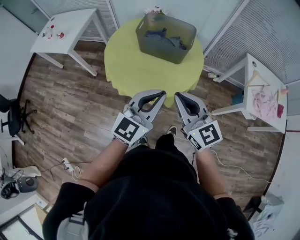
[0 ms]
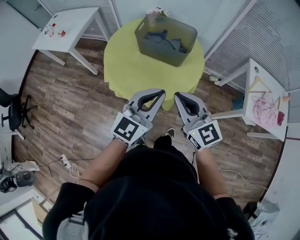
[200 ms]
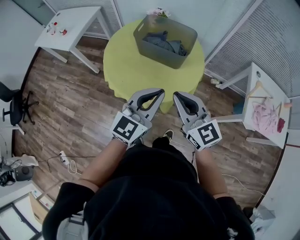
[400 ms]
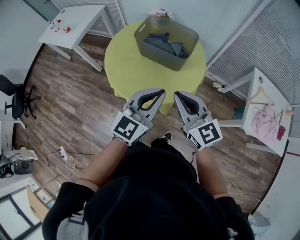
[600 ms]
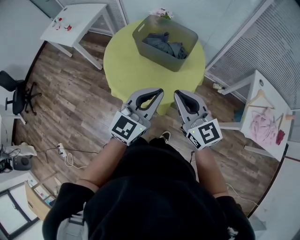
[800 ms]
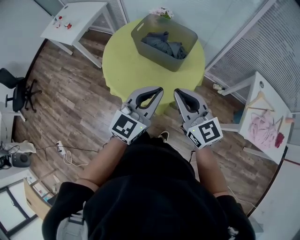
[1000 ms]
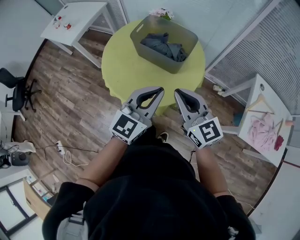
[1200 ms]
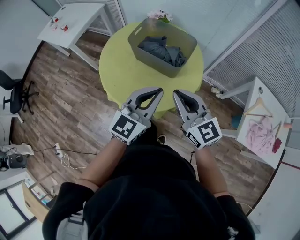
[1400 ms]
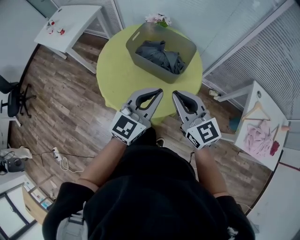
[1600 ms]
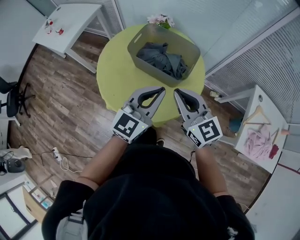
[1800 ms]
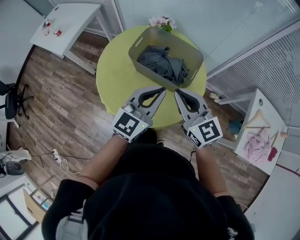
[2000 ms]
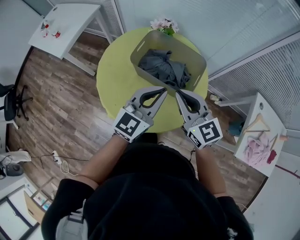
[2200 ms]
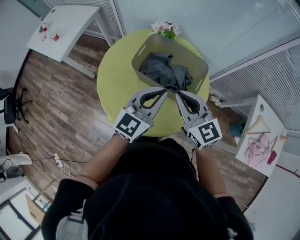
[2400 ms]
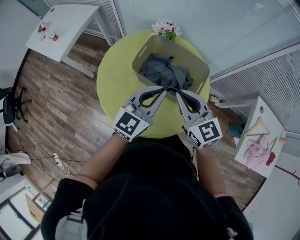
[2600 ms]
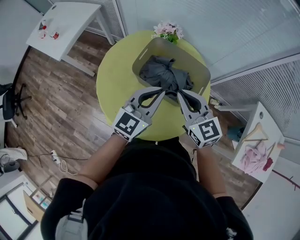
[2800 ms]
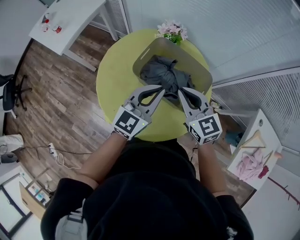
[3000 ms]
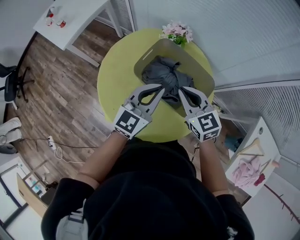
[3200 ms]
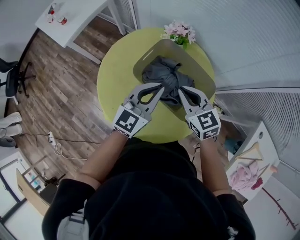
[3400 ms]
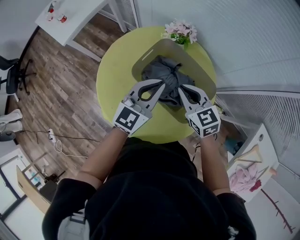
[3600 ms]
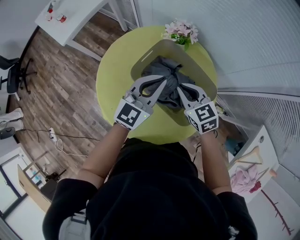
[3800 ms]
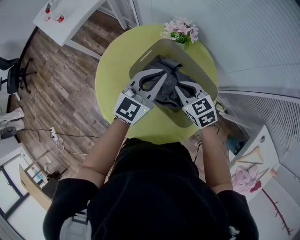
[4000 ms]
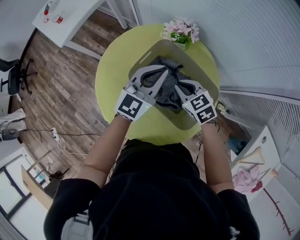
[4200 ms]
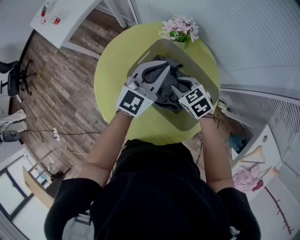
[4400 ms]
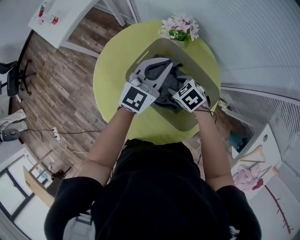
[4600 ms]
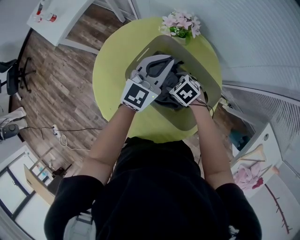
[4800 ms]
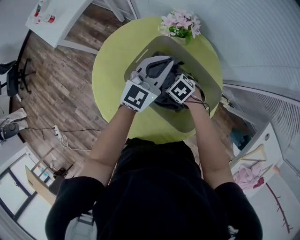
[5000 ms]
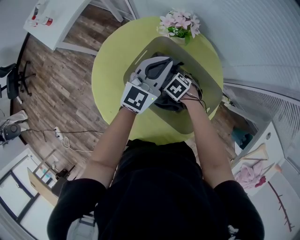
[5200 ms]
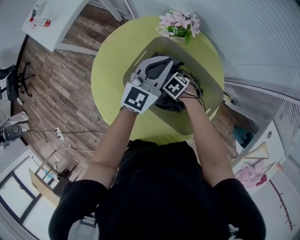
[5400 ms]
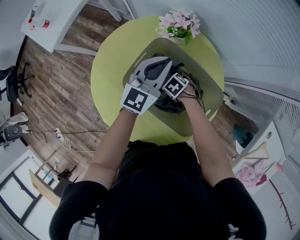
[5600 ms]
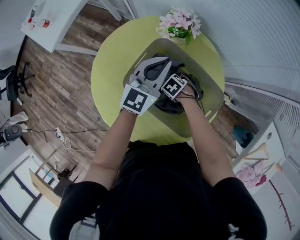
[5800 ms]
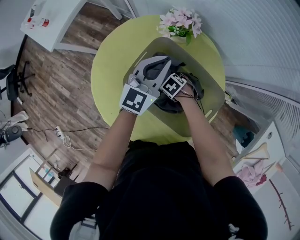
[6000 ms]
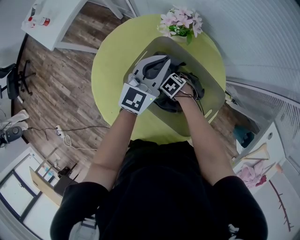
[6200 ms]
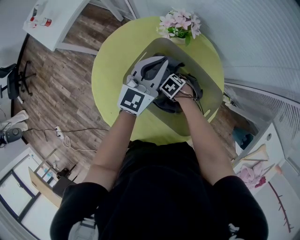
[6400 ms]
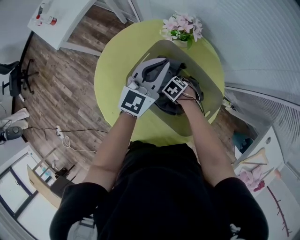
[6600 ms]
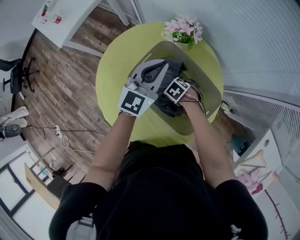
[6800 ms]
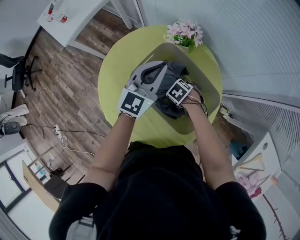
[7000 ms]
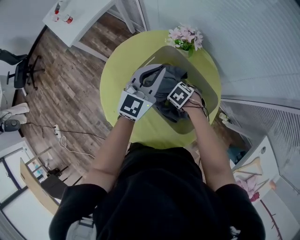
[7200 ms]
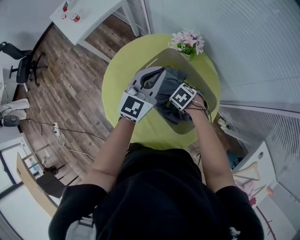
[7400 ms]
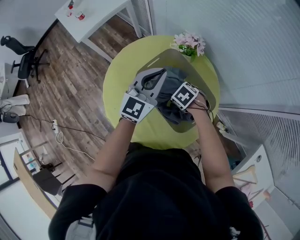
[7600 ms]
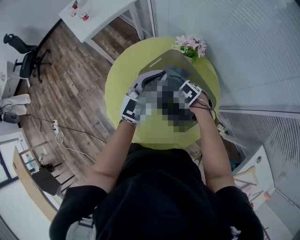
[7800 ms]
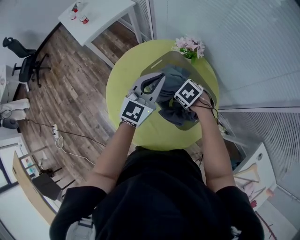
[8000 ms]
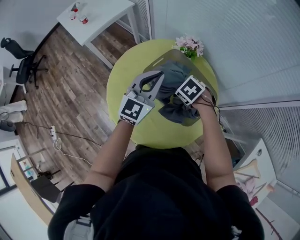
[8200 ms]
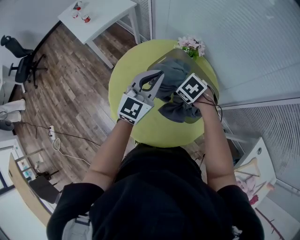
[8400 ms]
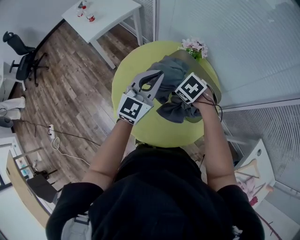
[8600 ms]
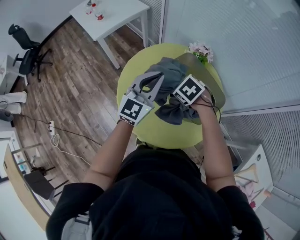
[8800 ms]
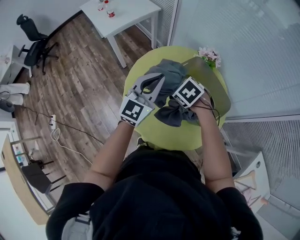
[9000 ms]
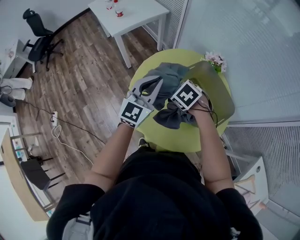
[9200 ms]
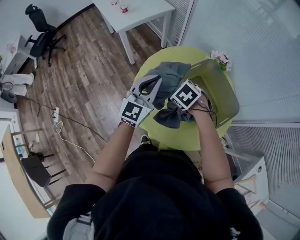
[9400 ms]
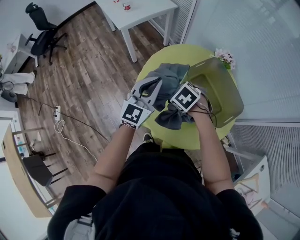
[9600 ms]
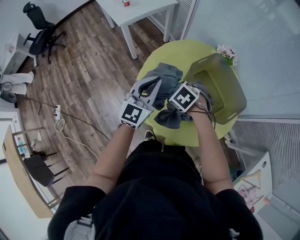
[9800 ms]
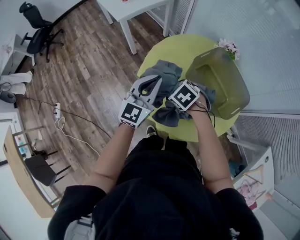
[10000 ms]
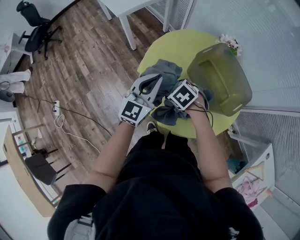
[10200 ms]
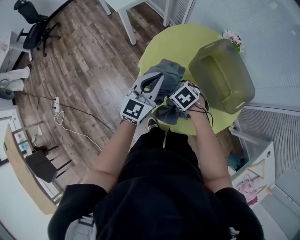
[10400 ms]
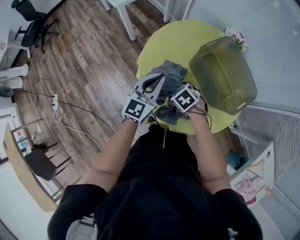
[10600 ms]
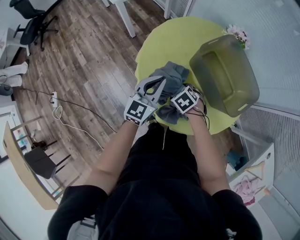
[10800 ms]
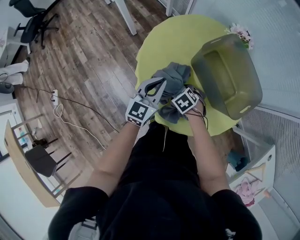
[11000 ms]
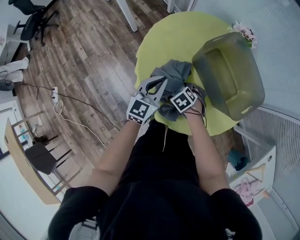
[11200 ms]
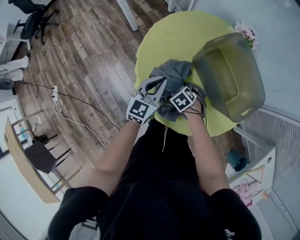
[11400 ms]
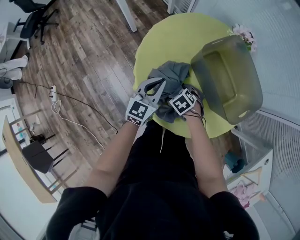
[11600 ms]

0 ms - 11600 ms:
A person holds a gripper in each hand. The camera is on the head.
0 ms - 1400 ms: Both grippers move forward and to the right, about 15 cm.
1400 ms - 2800 ms: The two grippers go approximately 25 cm forward.
2800 ms - 4400 ms: The left gripper travels forward by roughly 20 cm; the right gripper is displaced downward and forward by about 25 cm, and points its fingers about 30 degrees further downward.
4400 ms - 5800 ms: The left gripper is displaced downward by roughly 5 cm. Meanwhile the right gripper goes some 20 cm downward, changes its angle by roughly 30 degrees, and opens up.
5800 ms - 7200 ms: Both grippers travel together upward, approximately 10 cm.
7200 ms - 8800 ms: The left gripper changes place by some 20 cm. Meanwhile the right gripper shifts about 20 cm upward.
8800 ms - 10200 ms: The grippers both shift to the left and downward by roughly 20 cm.
10200 ms - 11600 ms: Both grippers move downward, approximately 15 cm.

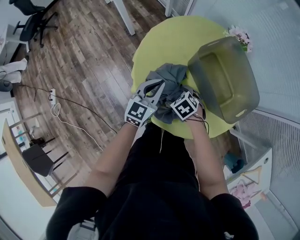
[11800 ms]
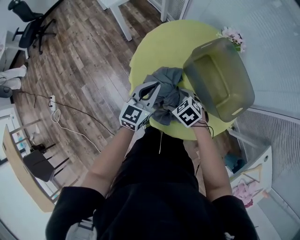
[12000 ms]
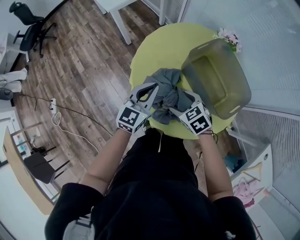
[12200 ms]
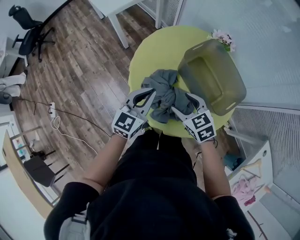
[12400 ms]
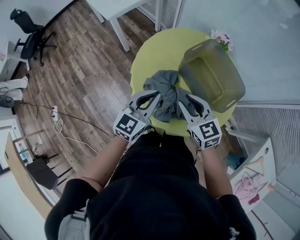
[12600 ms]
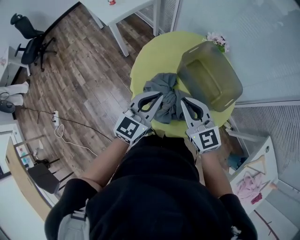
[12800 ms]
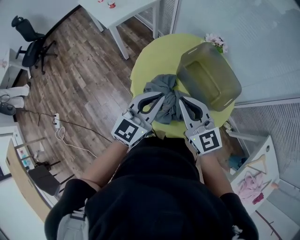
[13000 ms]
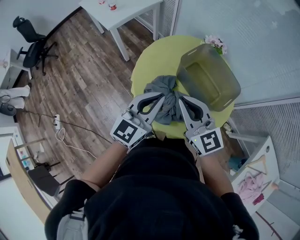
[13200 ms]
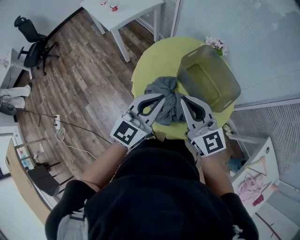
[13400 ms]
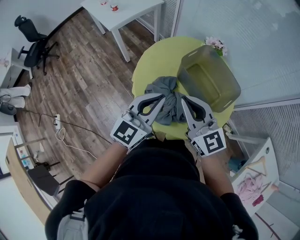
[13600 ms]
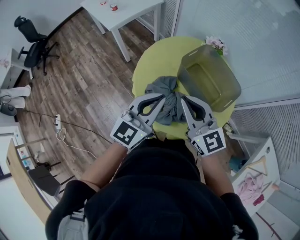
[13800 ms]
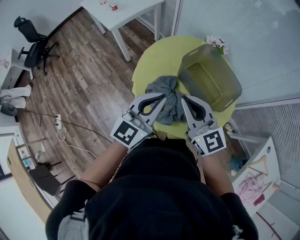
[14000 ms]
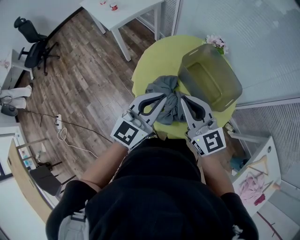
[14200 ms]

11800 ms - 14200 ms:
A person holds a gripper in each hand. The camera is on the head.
11800 ms - 13000 ms: The right gripper moves upward, approximately 35 cm, points its fingers roughly 60 degrees further upward, and closes, while the left gripper heads upward and backward, covering some 25 cm.
13000 ms - 14200 ms: The grippers stay close to where they were, moving slightly.

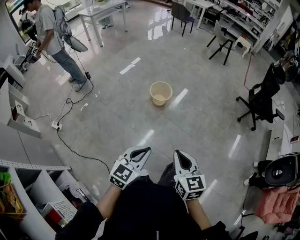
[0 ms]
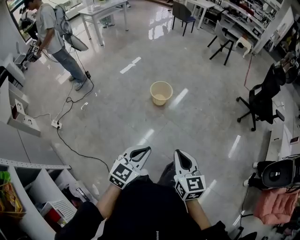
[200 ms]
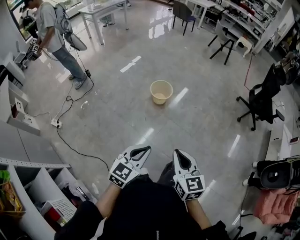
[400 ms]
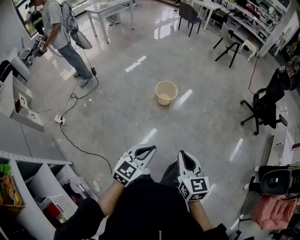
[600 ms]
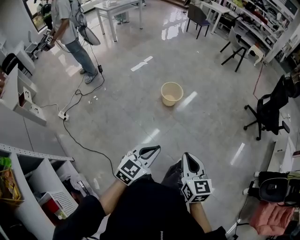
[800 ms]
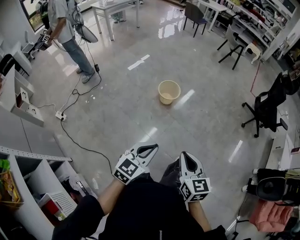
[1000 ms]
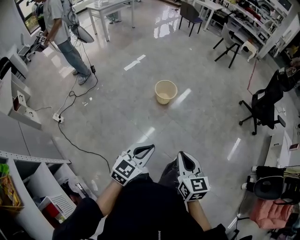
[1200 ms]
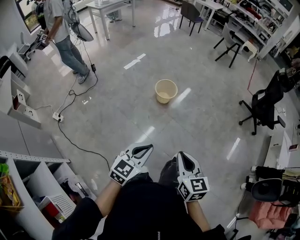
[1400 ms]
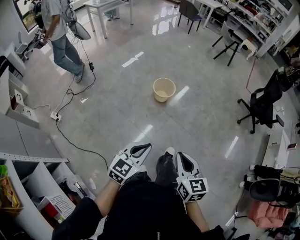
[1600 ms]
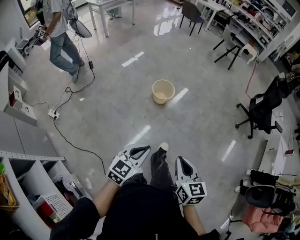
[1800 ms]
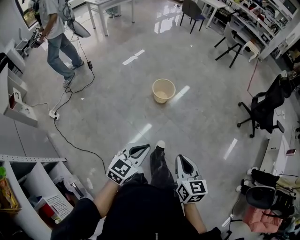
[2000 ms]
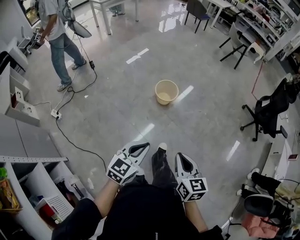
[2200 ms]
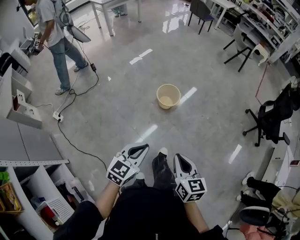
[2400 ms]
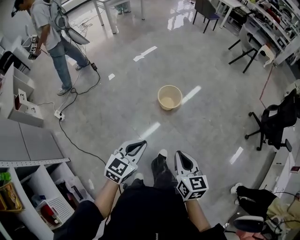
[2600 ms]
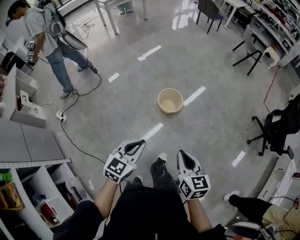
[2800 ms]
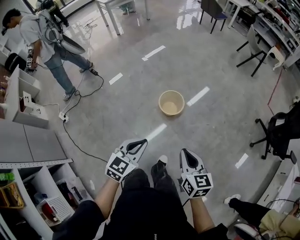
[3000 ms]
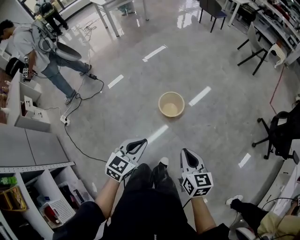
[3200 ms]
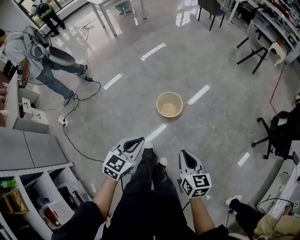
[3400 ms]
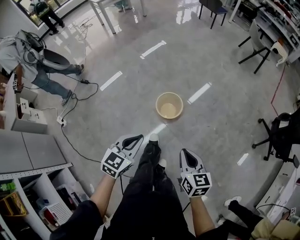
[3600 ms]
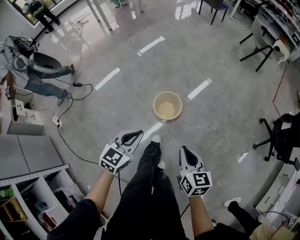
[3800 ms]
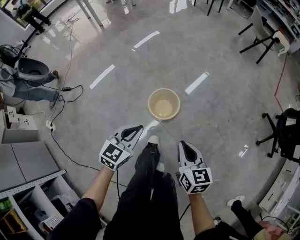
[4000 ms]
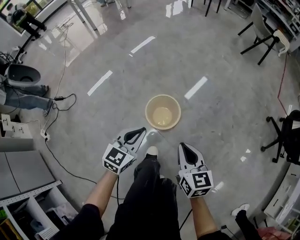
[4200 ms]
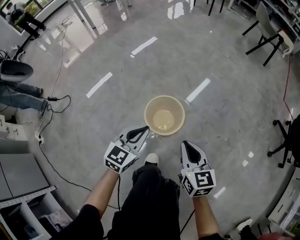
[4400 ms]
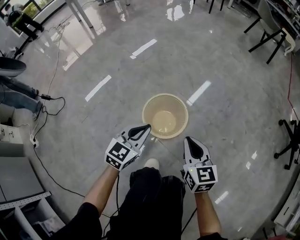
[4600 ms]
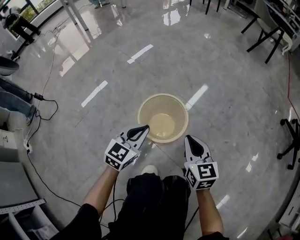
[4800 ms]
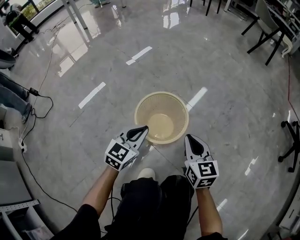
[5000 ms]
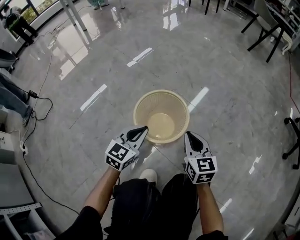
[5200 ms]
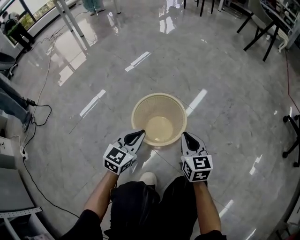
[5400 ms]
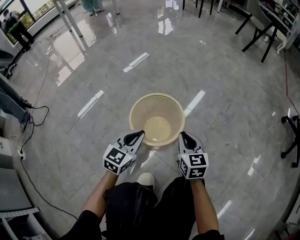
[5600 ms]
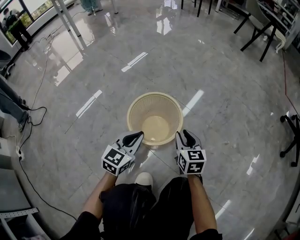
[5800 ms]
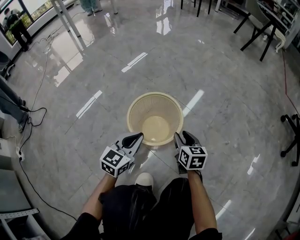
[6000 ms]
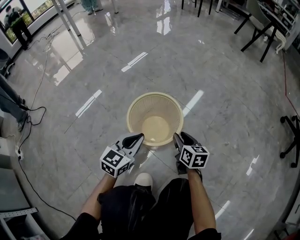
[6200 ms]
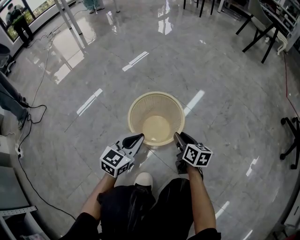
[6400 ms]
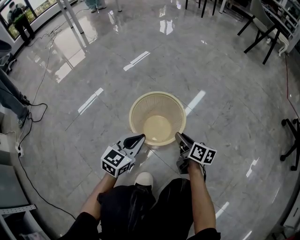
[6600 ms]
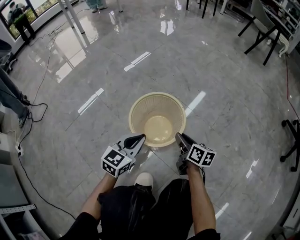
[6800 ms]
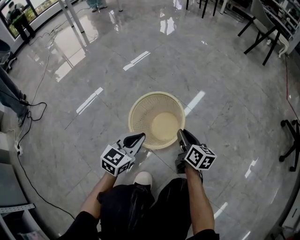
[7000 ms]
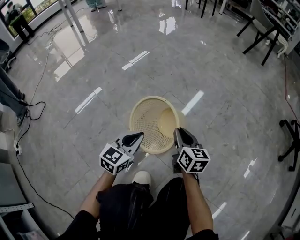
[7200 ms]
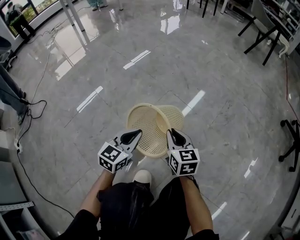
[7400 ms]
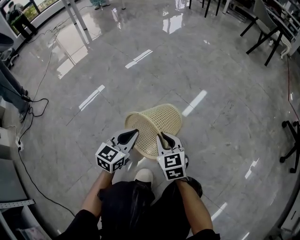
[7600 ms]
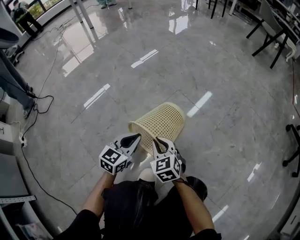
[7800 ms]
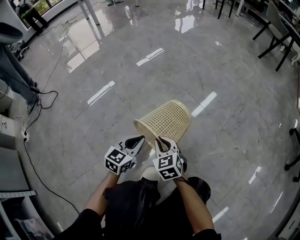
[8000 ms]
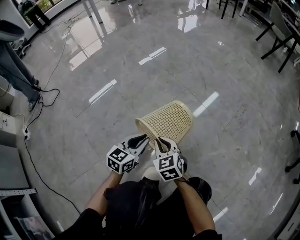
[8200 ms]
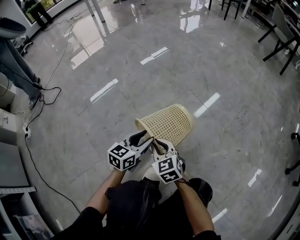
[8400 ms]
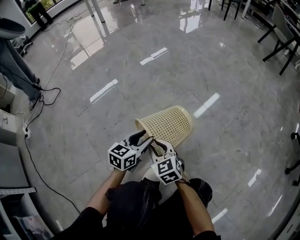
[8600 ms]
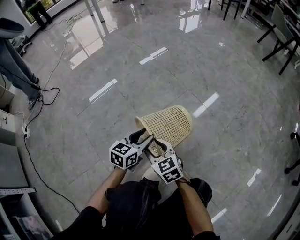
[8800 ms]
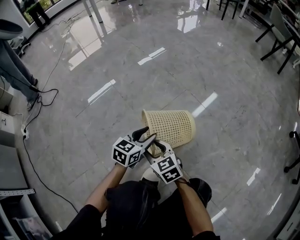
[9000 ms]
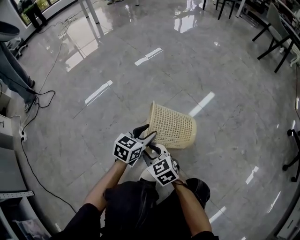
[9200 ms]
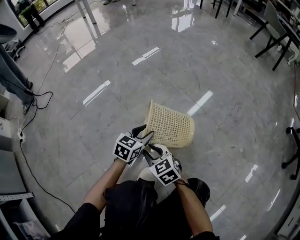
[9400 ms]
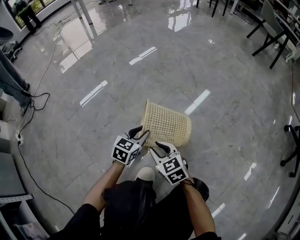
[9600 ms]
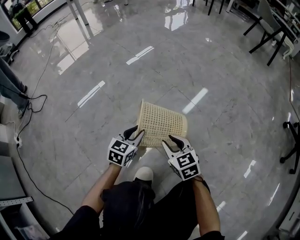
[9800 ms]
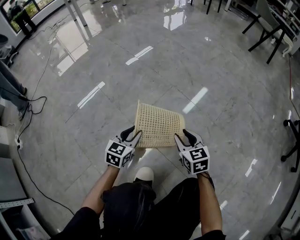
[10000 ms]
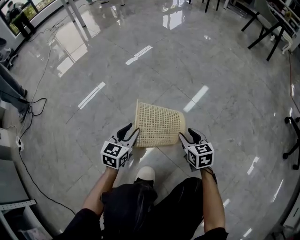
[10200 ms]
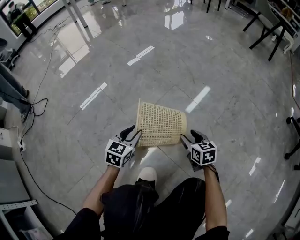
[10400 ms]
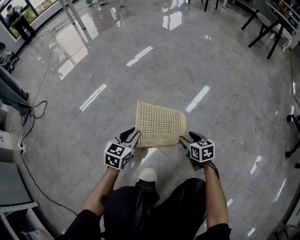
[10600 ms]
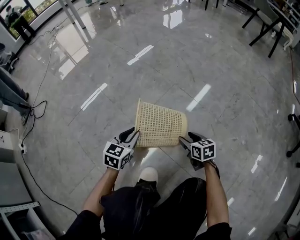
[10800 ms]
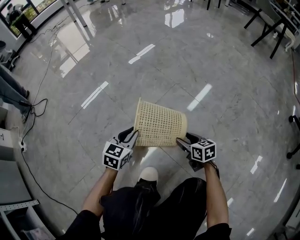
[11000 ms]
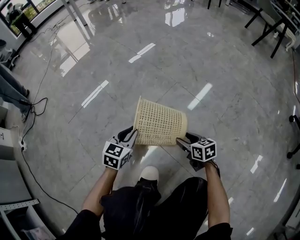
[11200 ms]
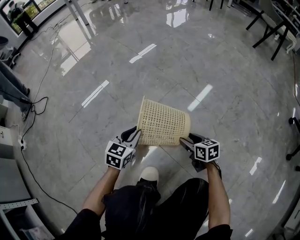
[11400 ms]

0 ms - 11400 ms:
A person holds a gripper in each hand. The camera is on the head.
0 ms - 1400 ms: The grippers stay close to where they were, moving slightly.
1400 ms - 2800 ms: Both grippers travel together forward, roughly 30 cm.
2800 ms - 4200 ms: Both grippers travel together forward and downward, about 40 cm.
4200 ms - 5600 ms: The two grippers go approximately 40 cm downward.
5600 ms - 7200 ms: The right gripper goes downward and returns, roughly 10 cm each way, and opens and closes again.
7200 ms - 8600 ms: The left gripper is displaced to the left and downward by approximately 10 cm, and opens its fingers. Meanwhile the right gripper travels to the left and backward by about 20 cm, and rotates about 50 degrees.
8600 ms - 10000 ms: The right gripper travels to the right by roughly 20 cm, and swivels approximately 20 degrees.
10000 ms - 11400 ms: The right gripper travels downward by some 10 cm, turns by some 20 degrees, and opens up.
